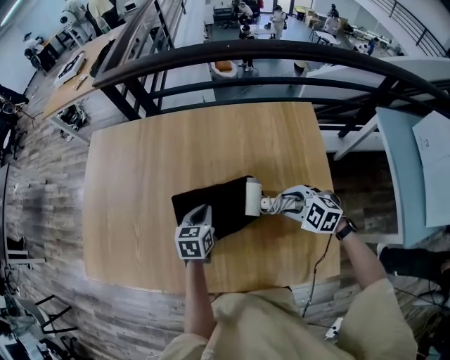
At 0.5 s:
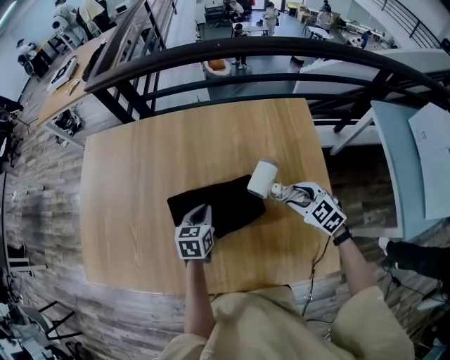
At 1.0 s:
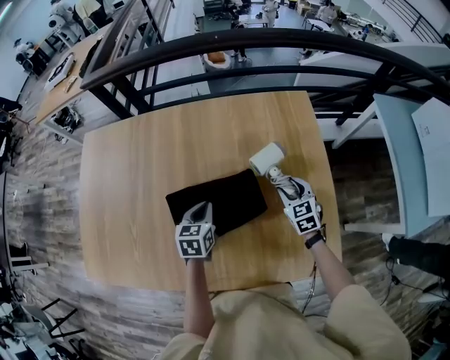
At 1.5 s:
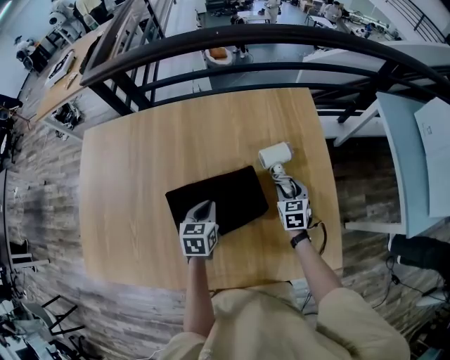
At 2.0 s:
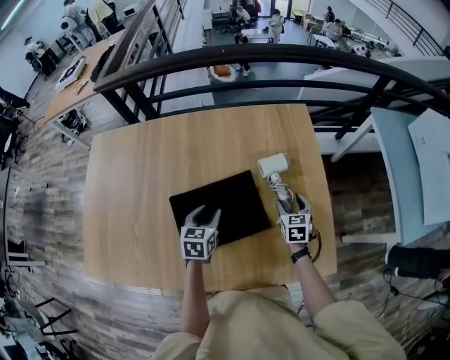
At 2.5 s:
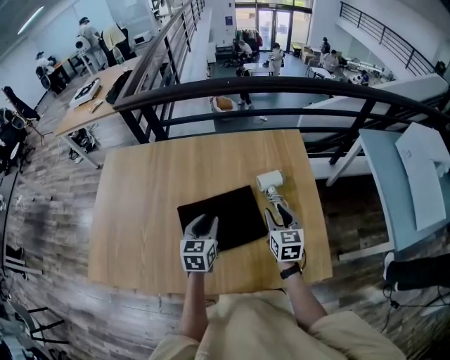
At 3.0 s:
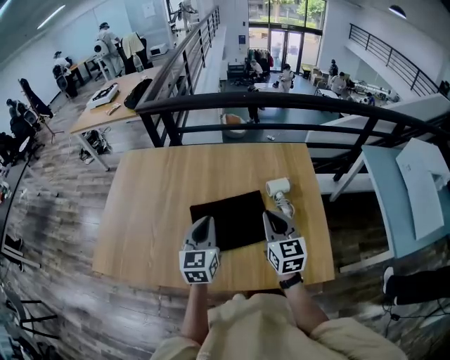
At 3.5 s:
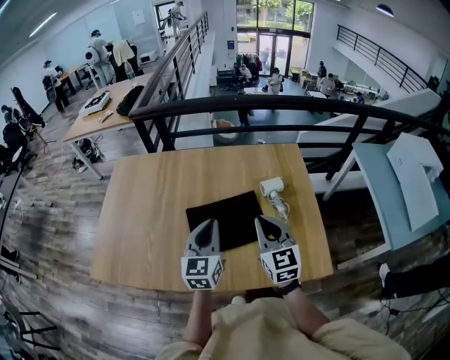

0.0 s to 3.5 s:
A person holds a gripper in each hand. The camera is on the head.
0.0 to 2.0 s: The left gripper opens up. Meanwhile the right gripper shifts roughly 10 cm downward, and changes its angle by some 70 degrees.
2.0 to 3.5 s: The left gripper is displaced upward and backward by roughly 25 cm, tilts its fingers about 30 degrees upward, and closes its fingers, while the right gripper is displaced upward, to the left and backward by about 35 cm, tilts its fingers roughly 30 degrees upward, and closes up.

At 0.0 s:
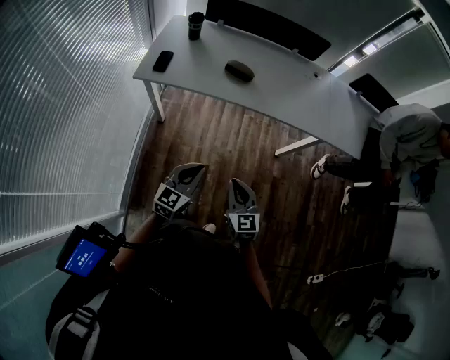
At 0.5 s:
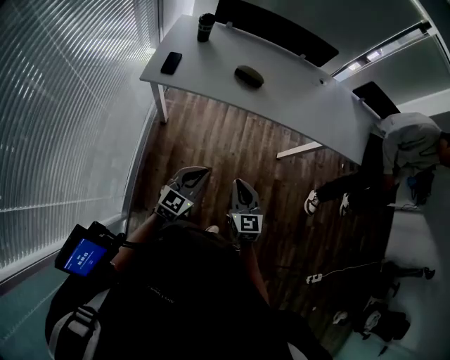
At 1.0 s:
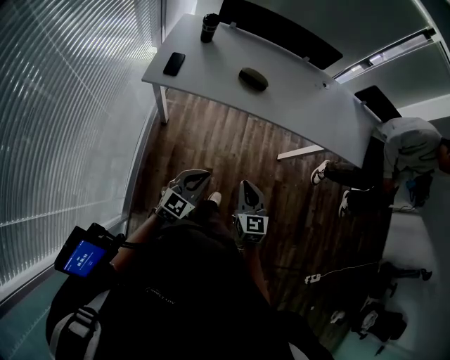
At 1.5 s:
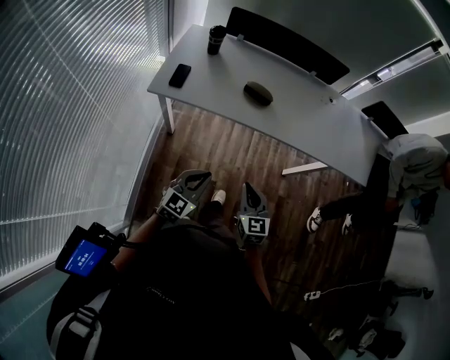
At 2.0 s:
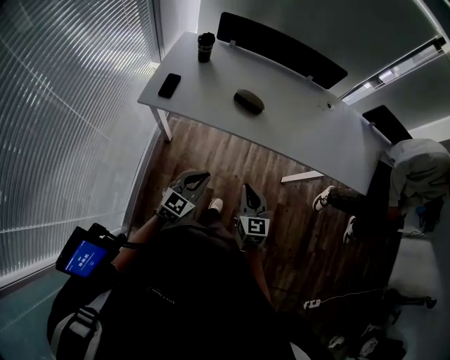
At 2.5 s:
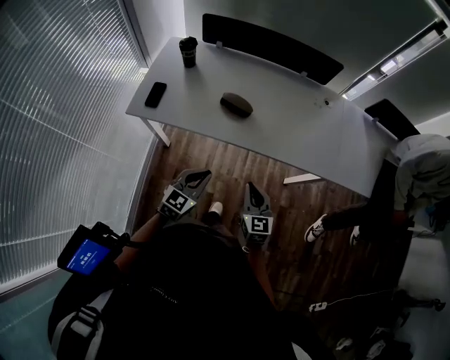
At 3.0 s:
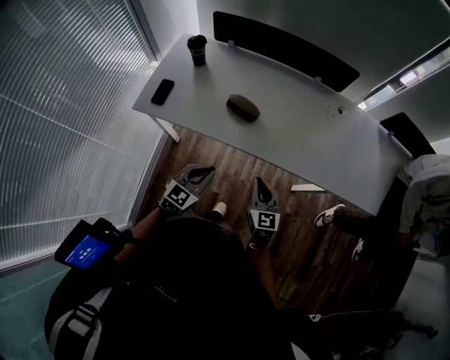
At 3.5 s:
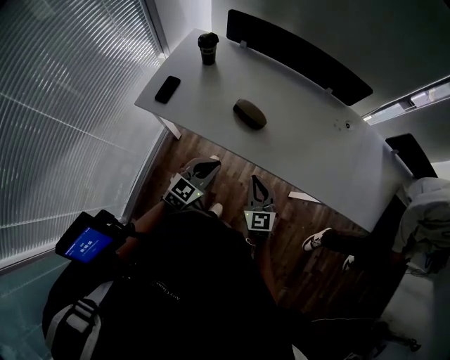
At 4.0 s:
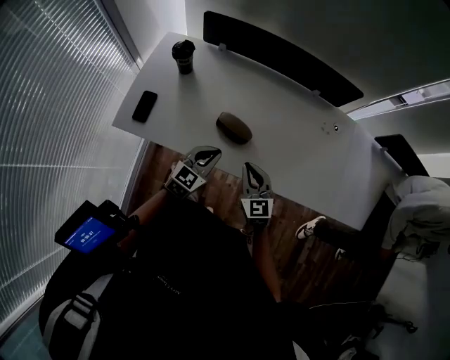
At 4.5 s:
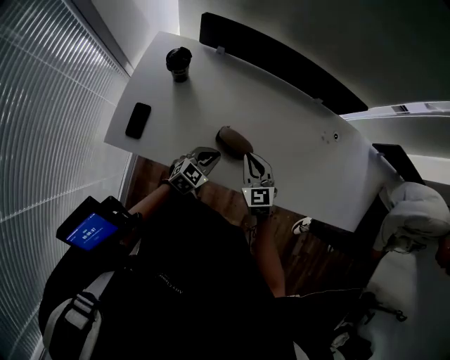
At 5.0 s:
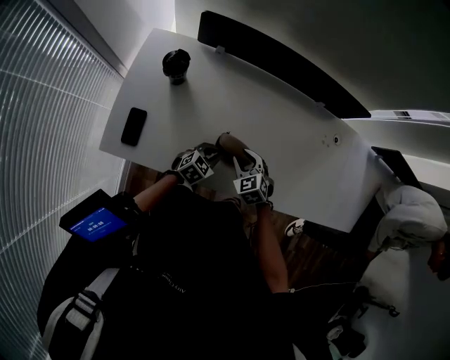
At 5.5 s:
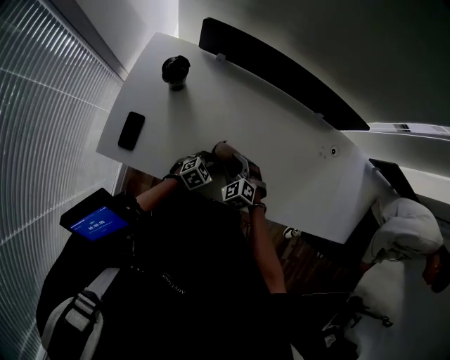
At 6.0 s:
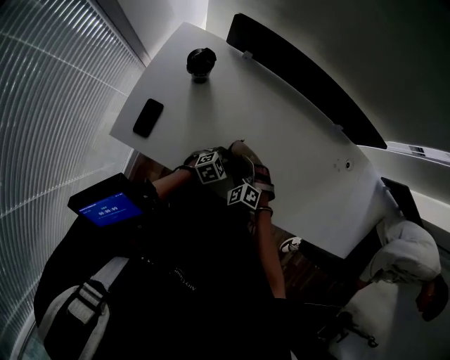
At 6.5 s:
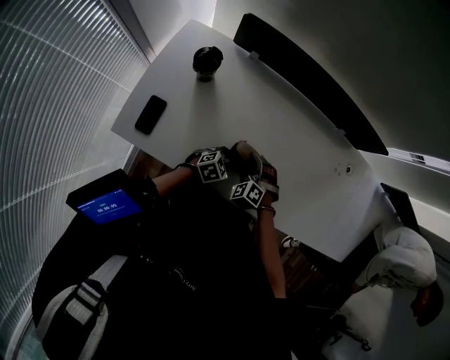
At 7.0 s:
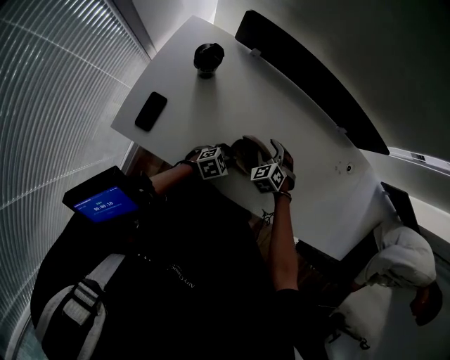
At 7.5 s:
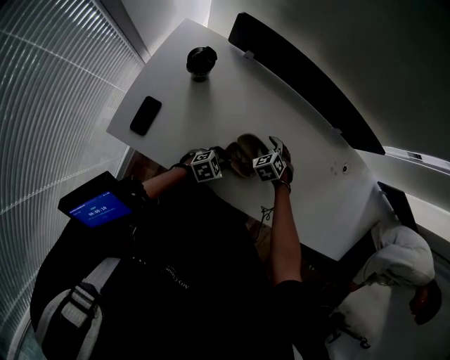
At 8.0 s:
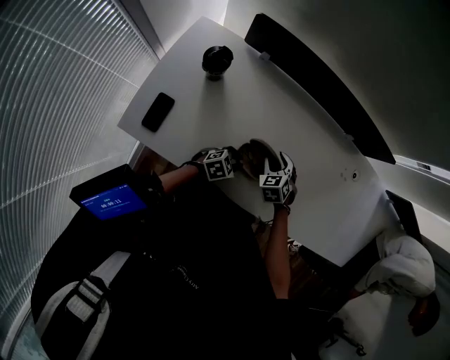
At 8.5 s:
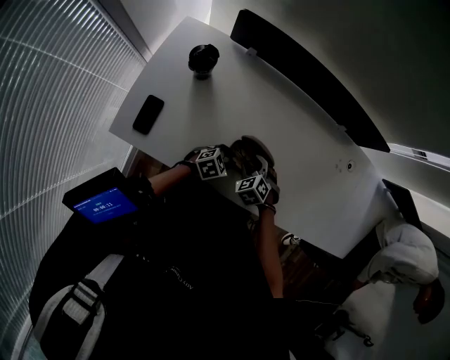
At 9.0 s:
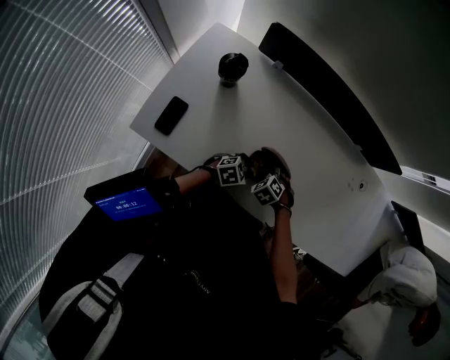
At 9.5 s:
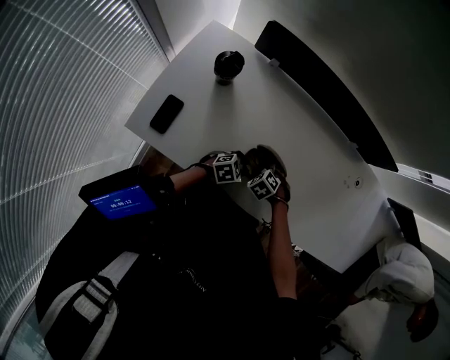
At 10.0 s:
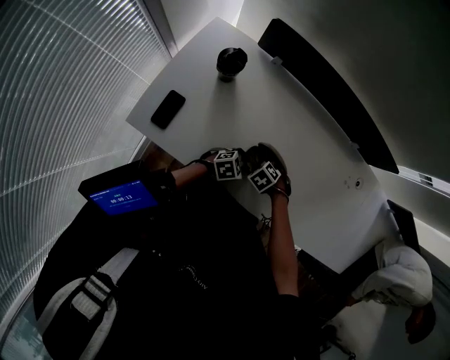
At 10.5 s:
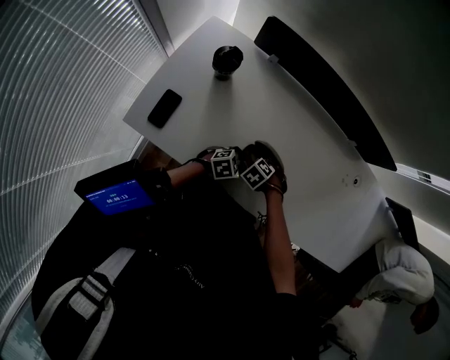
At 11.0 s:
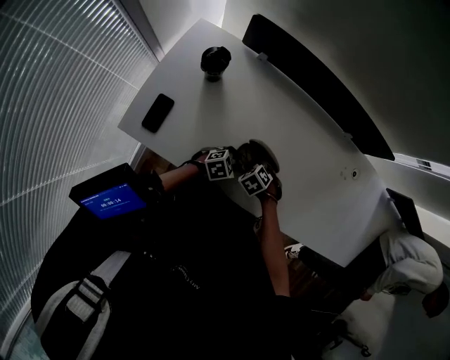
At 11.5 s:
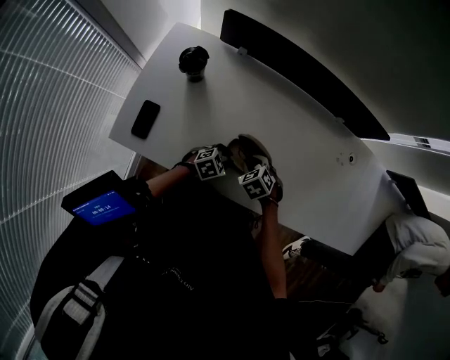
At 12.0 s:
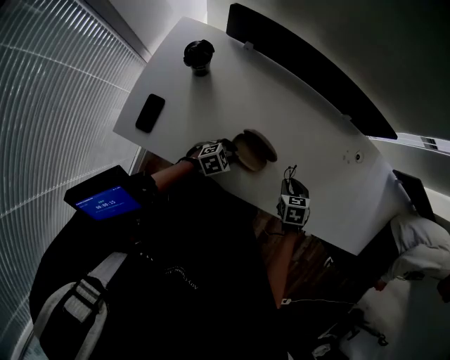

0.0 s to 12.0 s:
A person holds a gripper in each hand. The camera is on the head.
0.0 to 2.0 s: Both grippers move forward, roughly 15 cm.
2.0 to 4.0 s: The grippers both shift forward by about 30 cm.
4.0 to 6.0 s: The left gripper goes approximately 20 cm downward and forward, and swivels about 30 degrees, while the right gripper travels downward, to the left and forward by some 20 cm, tips its fingers downward by about 30 degrees, and opens its fingers.
6.0 to 8.0 s: The right gripper shifts roughly 10 cm forward, and changes its angle by roughly 30 degrees.
8.0 to 10.0 s: The right gripper travels downward by about 10 cm, and changes its angle by approximately 40 degrees.
10.0 to 12.0 s: The right gripper moves some 20 cm, and twists approximately 40 degrees clockwise, seen from behind.

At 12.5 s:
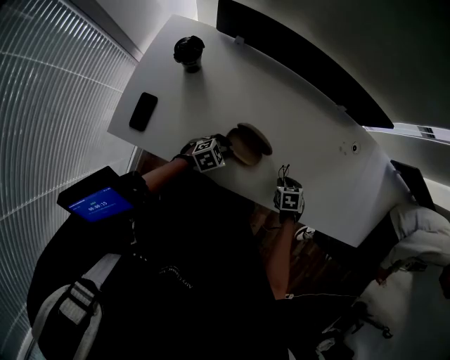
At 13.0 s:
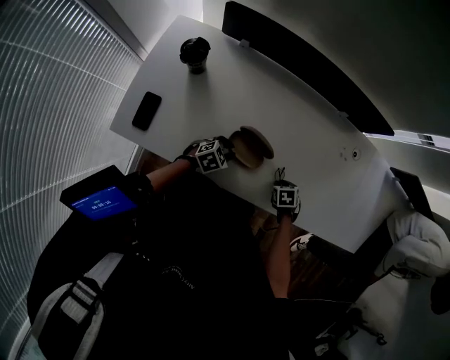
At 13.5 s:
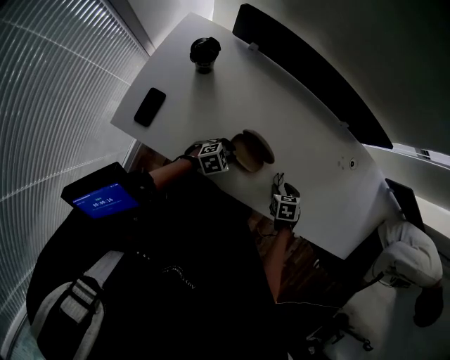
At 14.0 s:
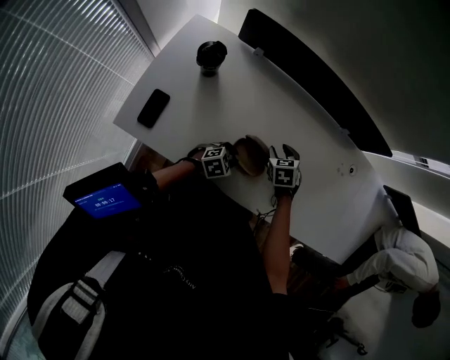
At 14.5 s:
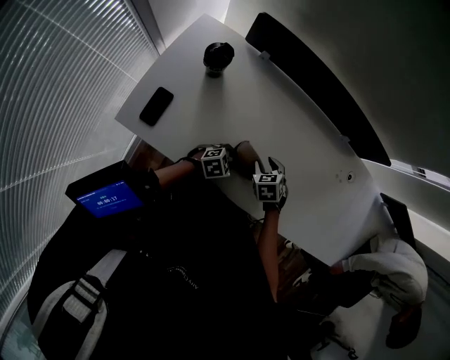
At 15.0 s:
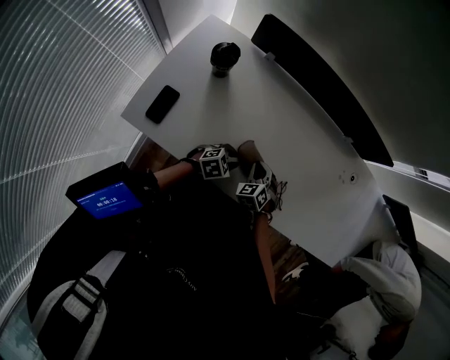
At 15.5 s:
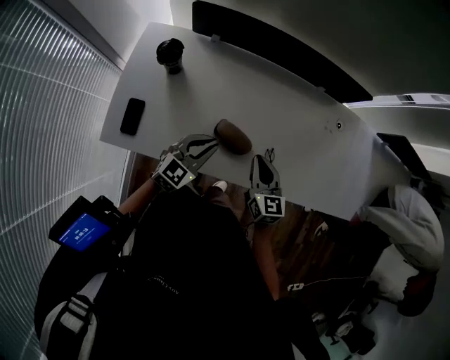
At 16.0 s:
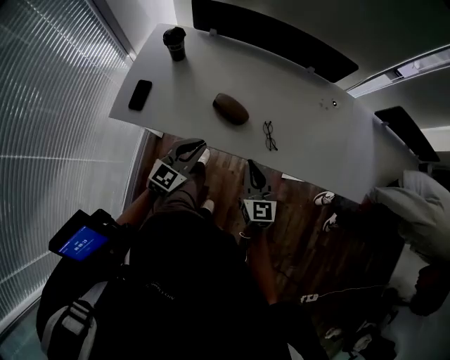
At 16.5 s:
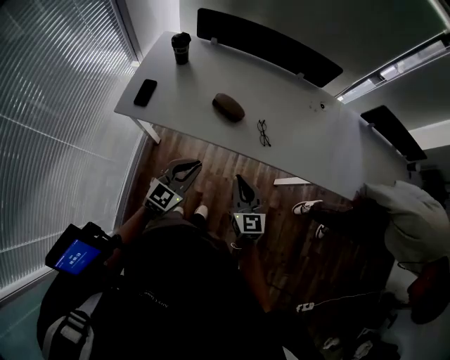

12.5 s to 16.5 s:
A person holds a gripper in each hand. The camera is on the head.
12.5 to 14.5 s: The right gripper shifts by about 20 cm, and turns by approximately 20 degrees.
14.5 to 16.5 s: Both grippers move backward and upward, some 40 cm. The left gripper tilts its fingers roughly 30 degrees upward. Meanwhile the right gripper tips its fingers upward by some 50 degrees, and closes up.

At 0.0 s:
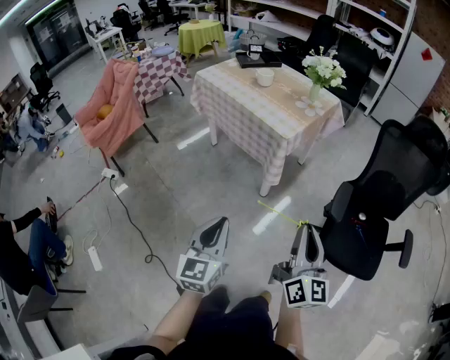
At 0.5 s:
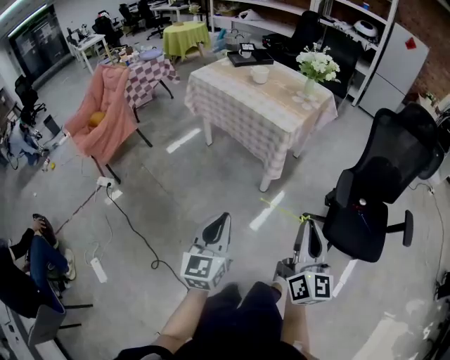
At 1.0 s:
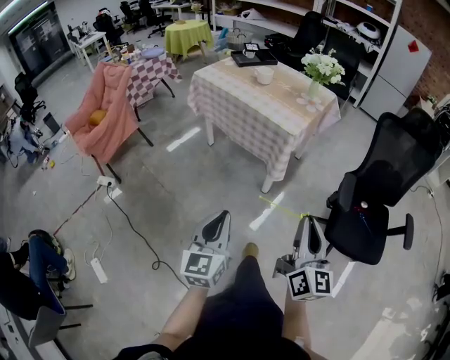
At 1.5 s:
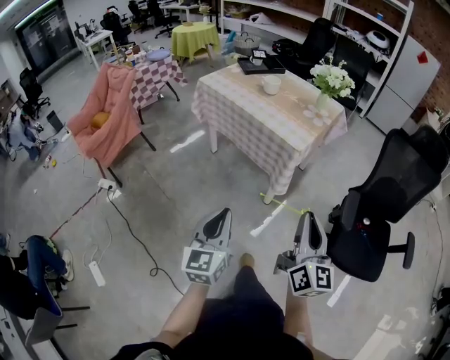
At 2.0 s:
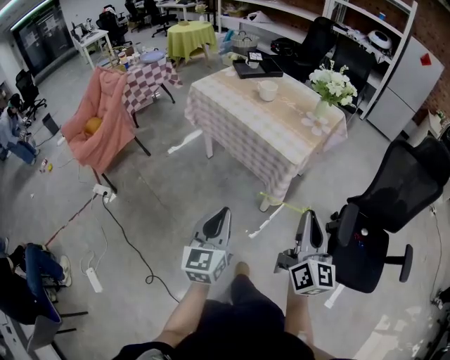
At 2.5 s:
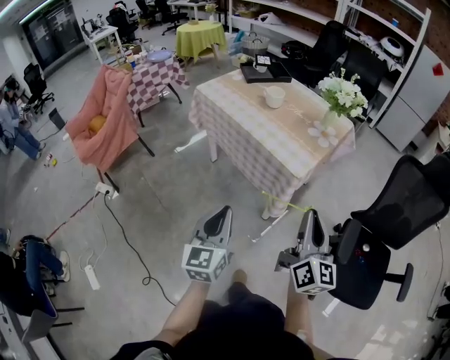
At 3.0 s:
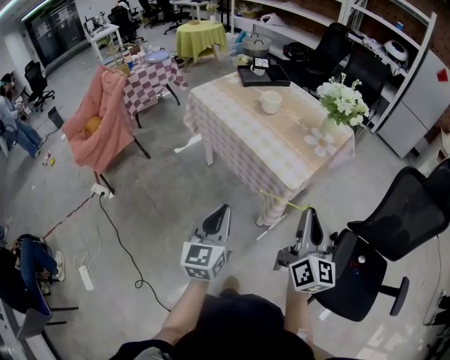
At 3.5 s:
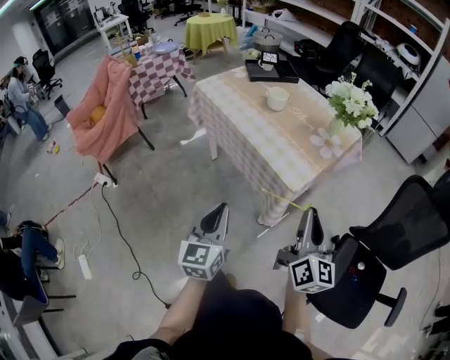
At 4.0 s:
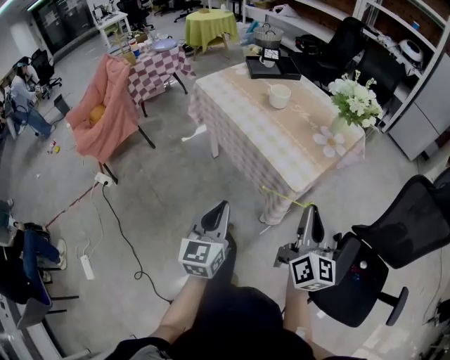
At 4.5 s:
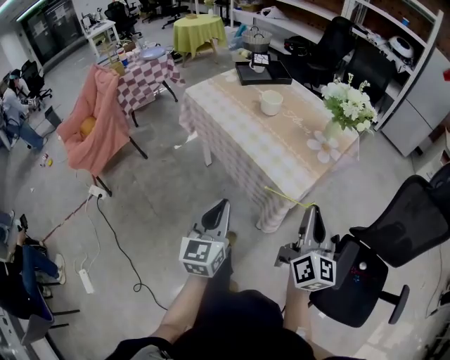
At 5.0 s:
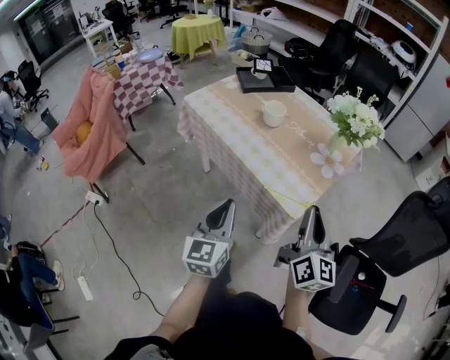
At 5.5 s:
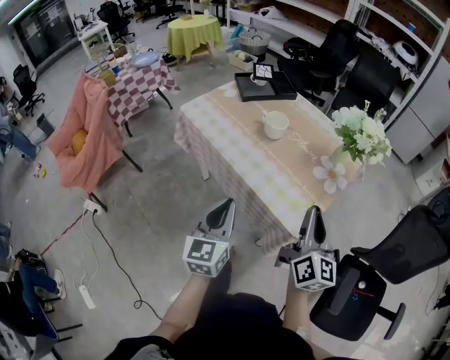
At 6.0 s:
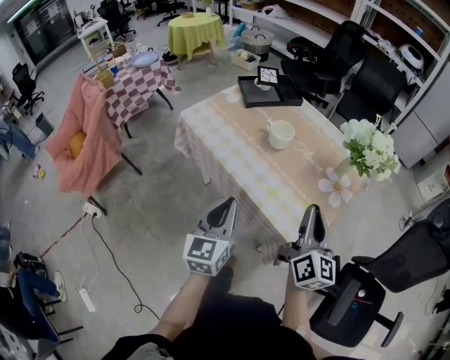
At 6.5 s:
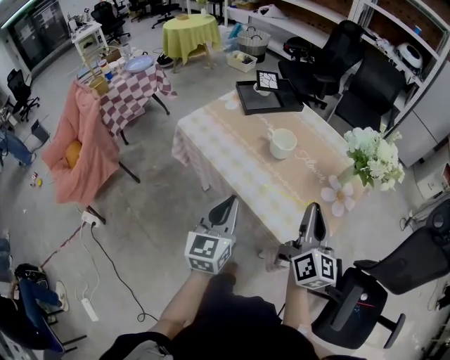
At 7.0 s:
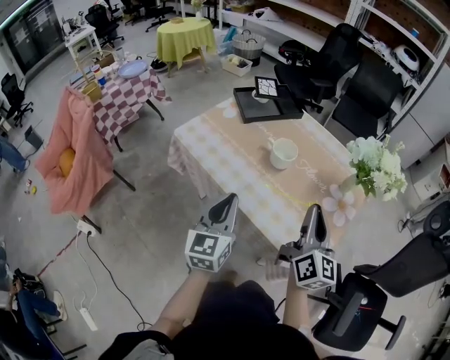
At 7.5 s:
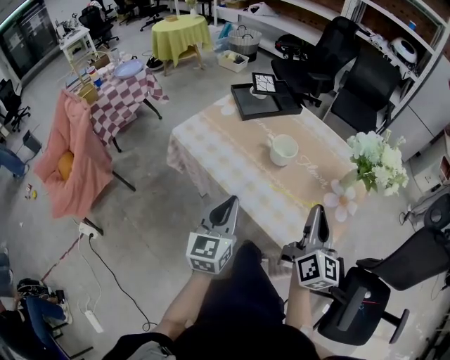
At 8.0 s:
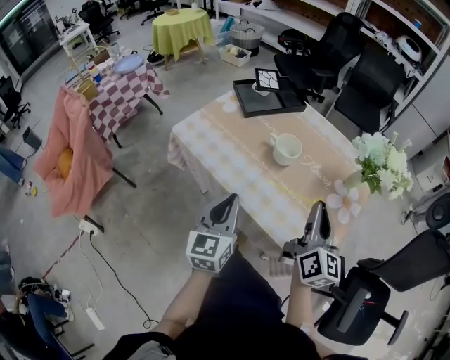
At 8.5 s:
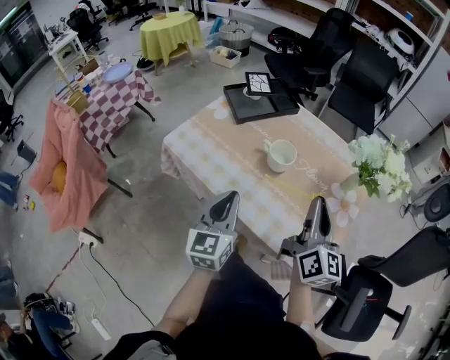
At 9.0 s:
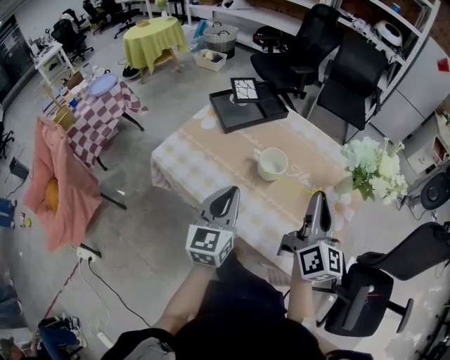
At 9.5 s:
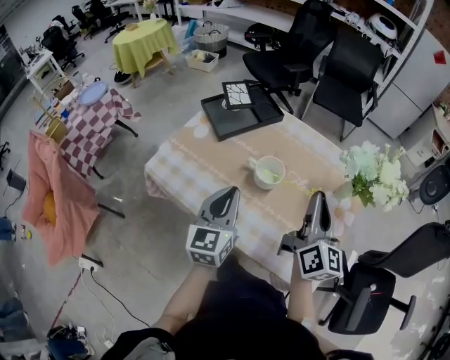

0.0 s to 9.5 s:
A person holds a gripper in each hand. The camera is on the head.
0.0 to 2.0 s: The grippers both shift forward and to the left by roughly 20 cm.
2.0 to 4.0 s: The two grippers go about 15 cm forward.
4.0 to 5.5 s: Both grippers travel together forward, about 20 cm.
5.5 to 7.5 s: Both grippers move forward and to the left, some 15 cm.
7.5 to 9.5 s: Both grippers move forward, about 15 cm.
